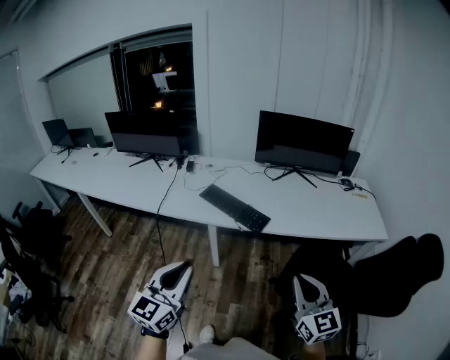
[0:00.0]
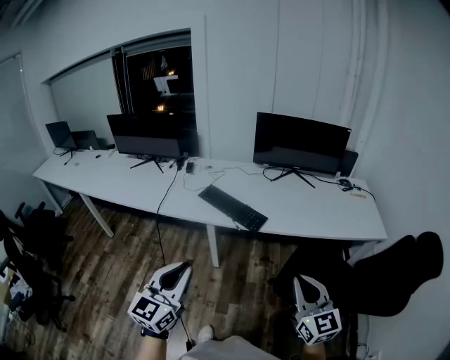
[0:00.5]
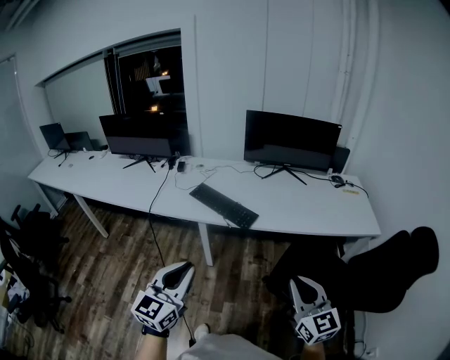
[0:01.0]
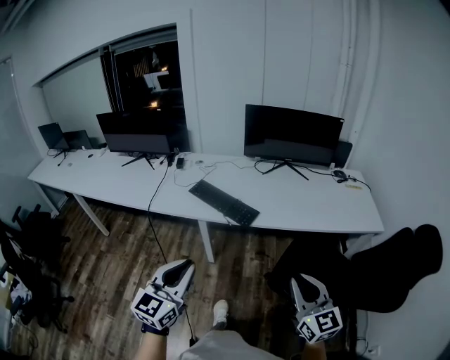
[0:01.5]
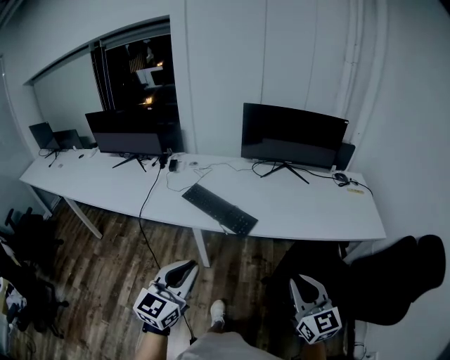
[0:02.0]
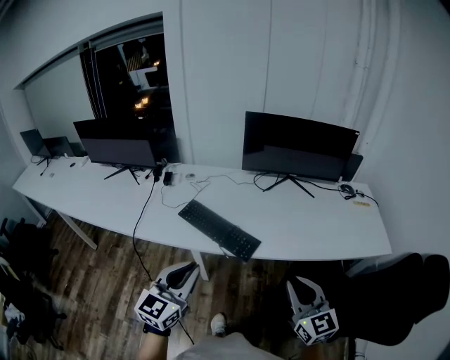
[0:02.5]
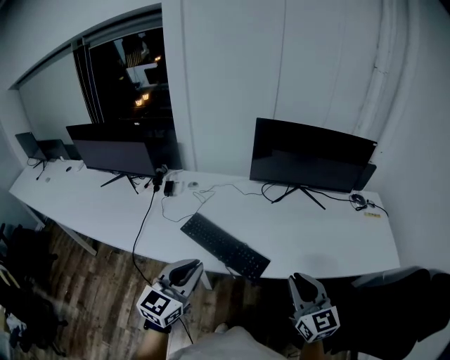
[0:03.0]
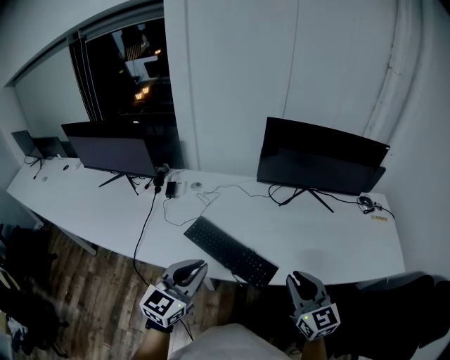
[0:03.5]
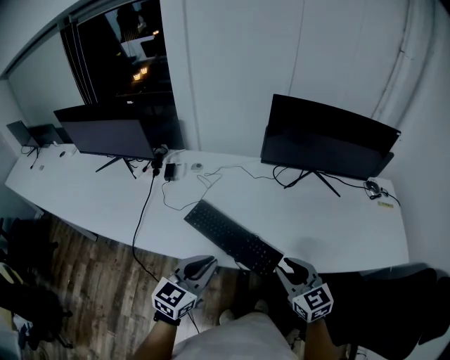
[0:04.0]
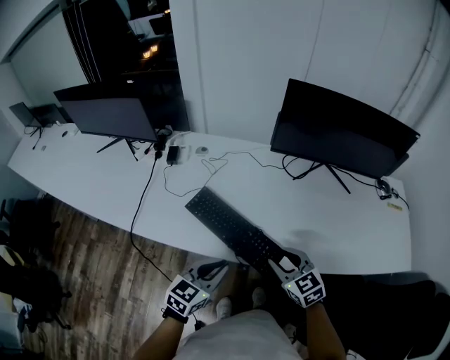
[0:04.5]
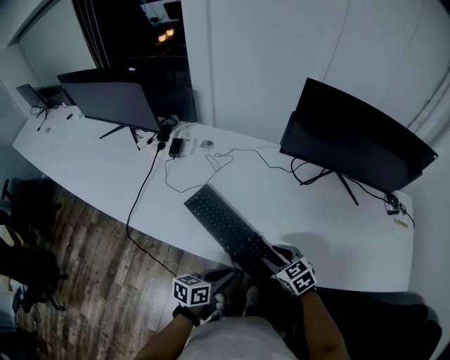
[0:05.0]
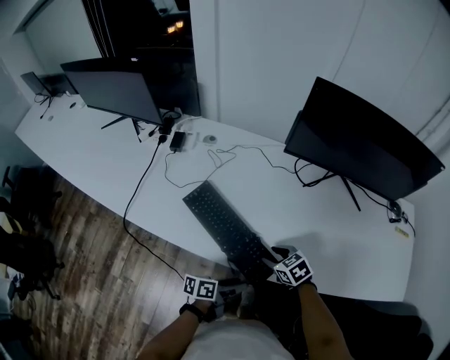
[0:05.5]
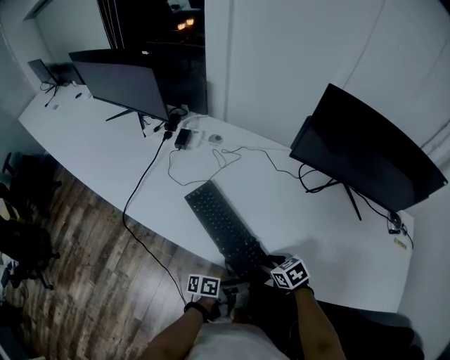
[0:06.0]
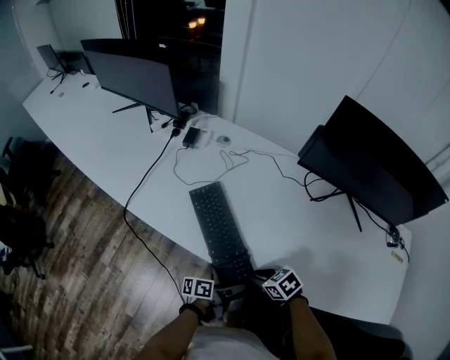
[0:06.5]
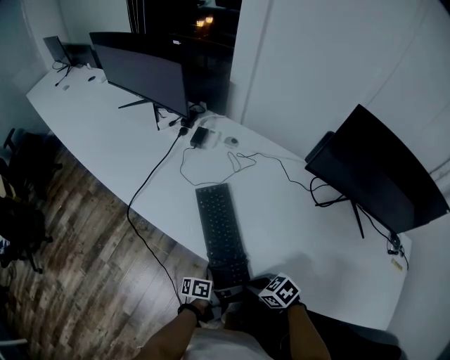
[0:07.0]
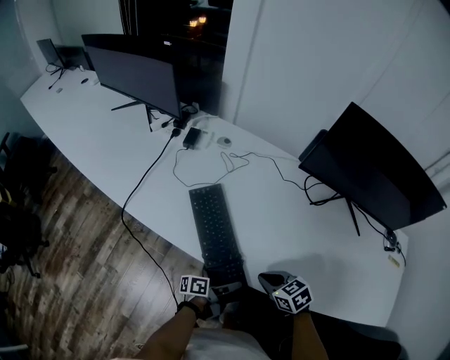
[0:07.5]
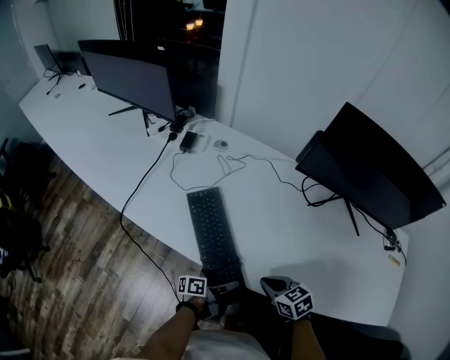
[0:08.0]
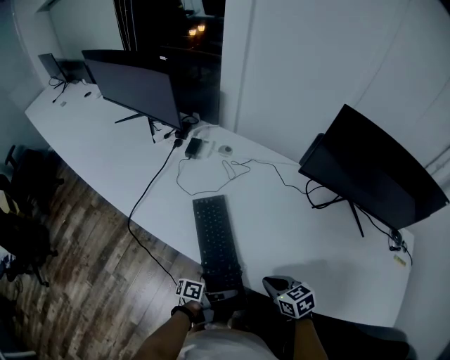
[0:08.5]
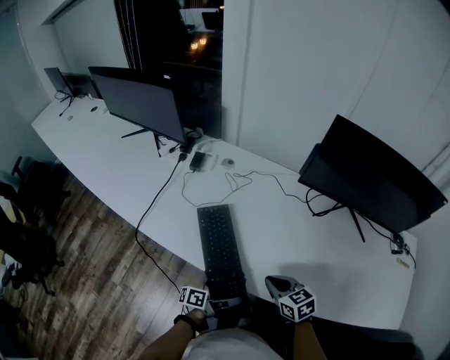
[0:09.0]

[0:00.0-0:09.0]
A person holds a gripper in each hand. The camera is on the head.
0:00.0 to 0:02.0: The grippers both shift forward and to the right by some 10 cm.
0:02.0 to 0:04.5: The left gripper is displaced forward and downward by approximately 35 cm, and swivels approximately 30 degrees; the right gripper heads forward, downward and to the left, covering approximately 40 cm, turns by approximately 30 degrees, and opens its fingers.
0:04.5 to 0:07.0: Both grippers move downward, about 15 cm. The right gripper changes its angle by some 50 degrees, and closes its fingers, while the left gripper twists roughly 80 degrees counterclockwise, seen from behind, and opens.
0:07.0 to 0:09.0: Both grippers move upward, approximately 5 cm. The right gripper turns by about 30 degrees; the left gripper closes.

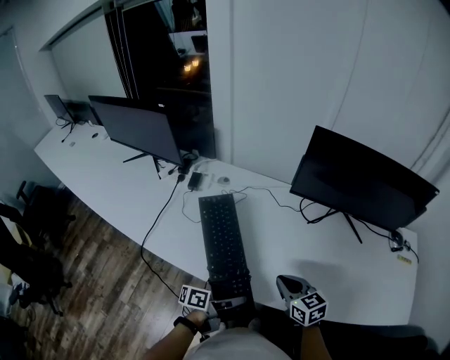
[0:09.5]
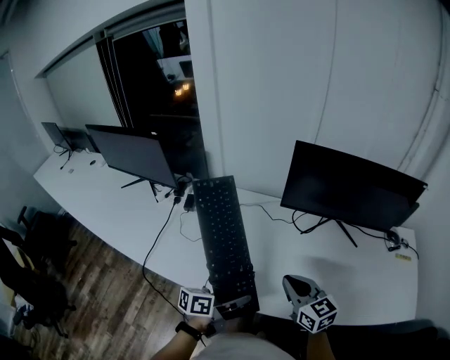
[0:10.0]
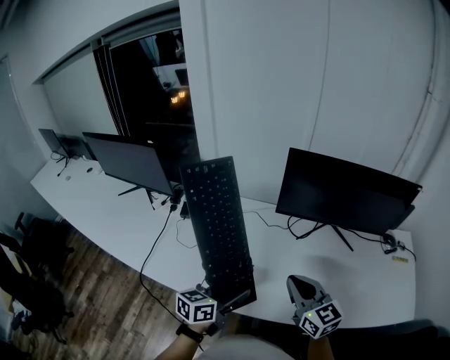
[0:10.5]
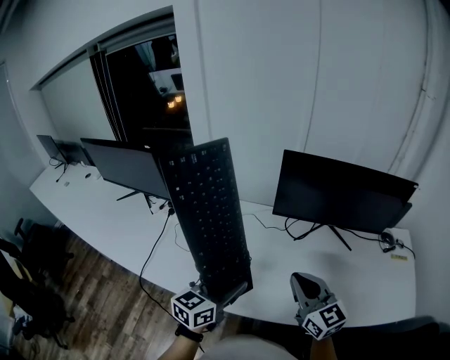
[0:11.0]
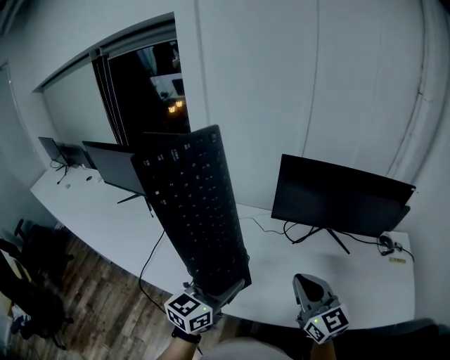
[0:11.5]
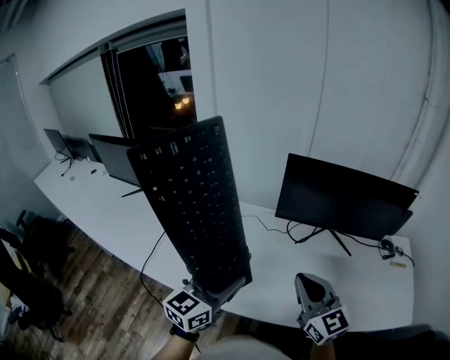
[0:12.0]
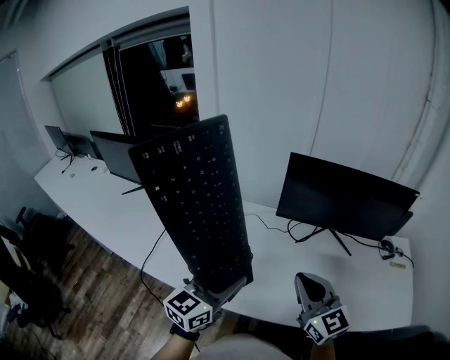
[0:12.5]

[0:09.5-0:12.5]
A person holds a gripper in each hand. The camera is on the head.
0:09.5 to 0:11.0: The right gripper goes roughly 20 cm upward, and swivels approximately 30 degrees. Meanwhile the left gripper heads upward and forward, covering some 20 cm, and twists approximately 60 degrees clockwise, seen from behind.
0:11.0 to 0:12.5: The left gripper heads upward, covering about 5 cm.

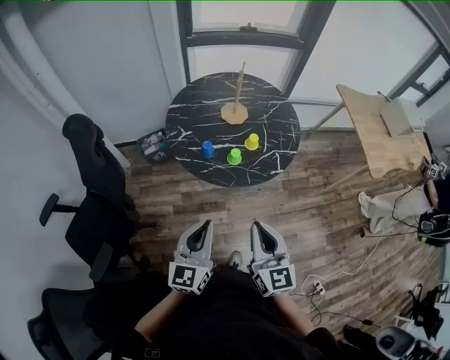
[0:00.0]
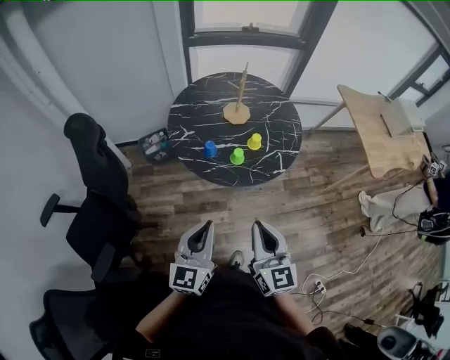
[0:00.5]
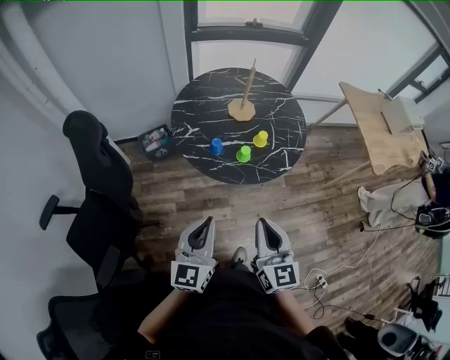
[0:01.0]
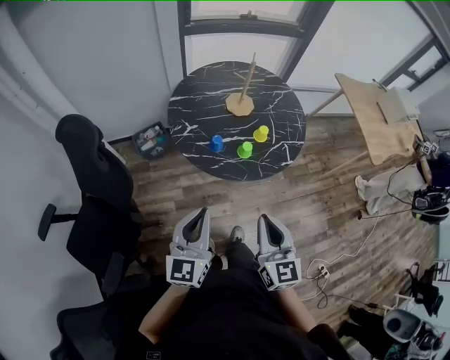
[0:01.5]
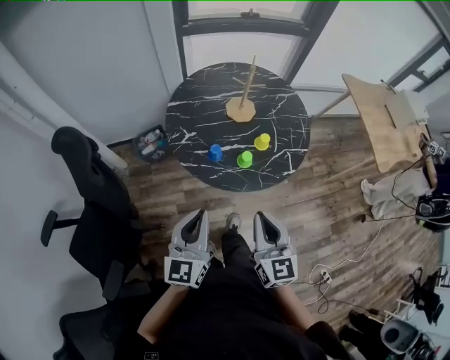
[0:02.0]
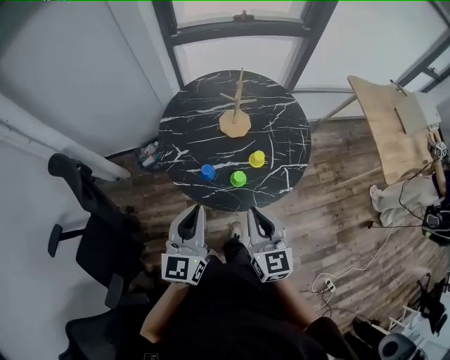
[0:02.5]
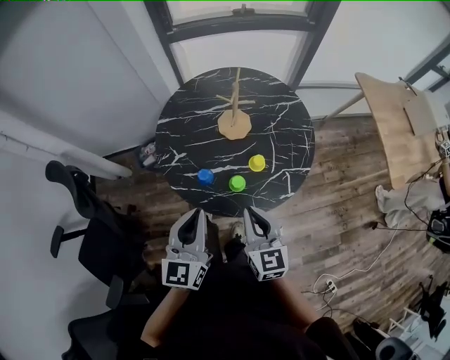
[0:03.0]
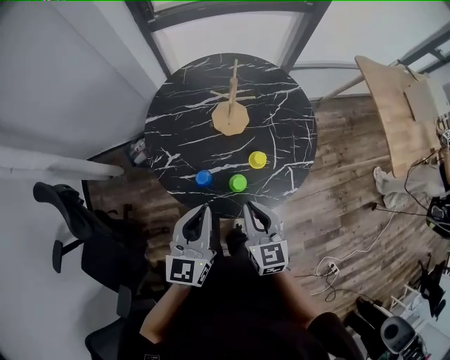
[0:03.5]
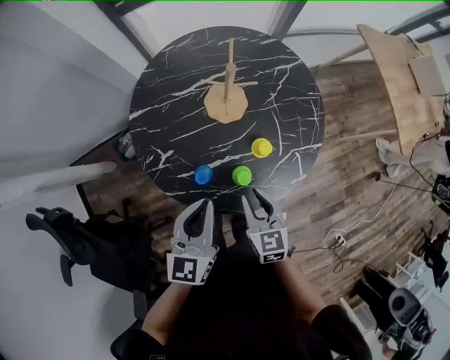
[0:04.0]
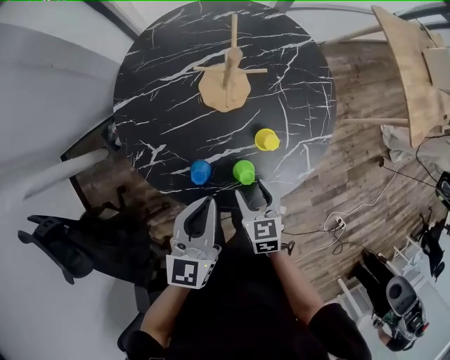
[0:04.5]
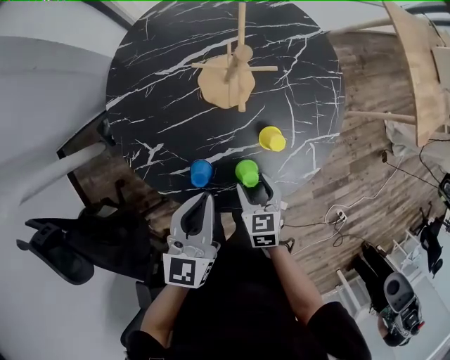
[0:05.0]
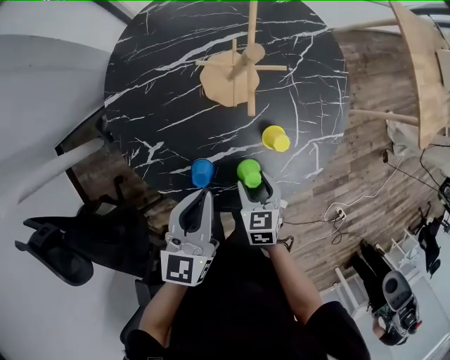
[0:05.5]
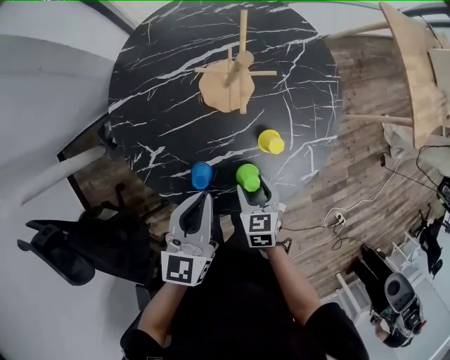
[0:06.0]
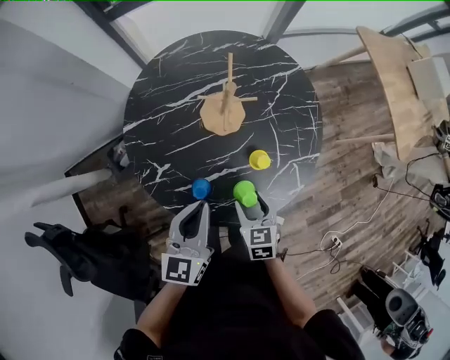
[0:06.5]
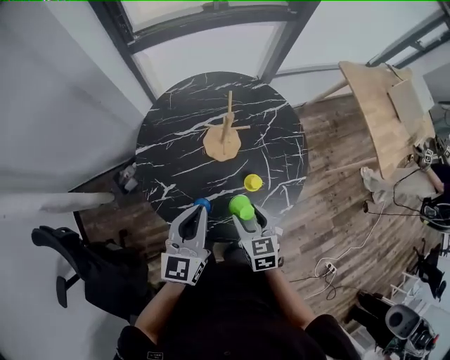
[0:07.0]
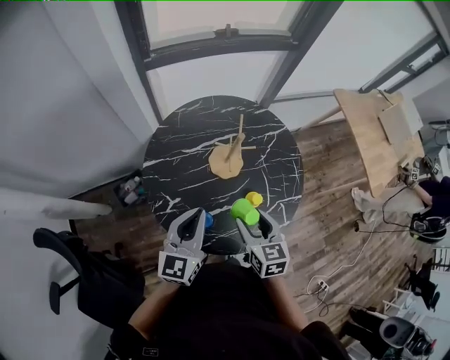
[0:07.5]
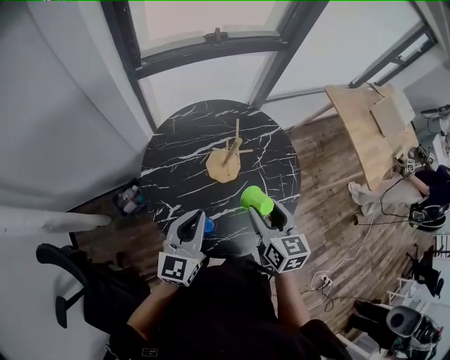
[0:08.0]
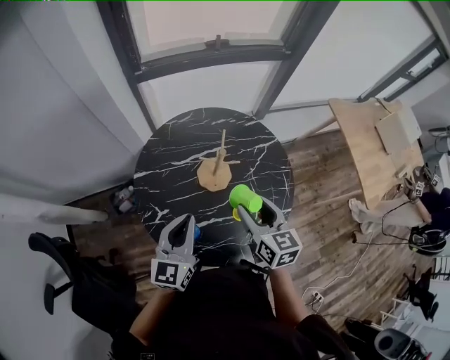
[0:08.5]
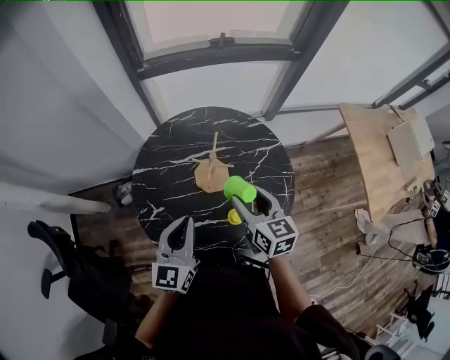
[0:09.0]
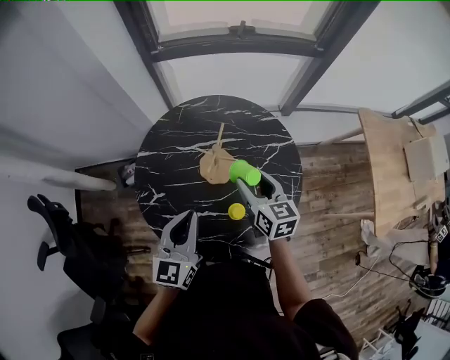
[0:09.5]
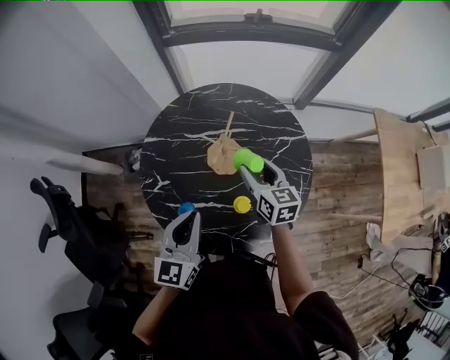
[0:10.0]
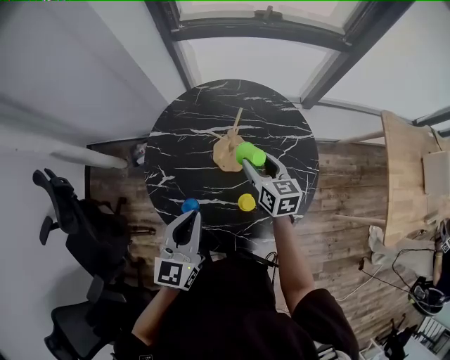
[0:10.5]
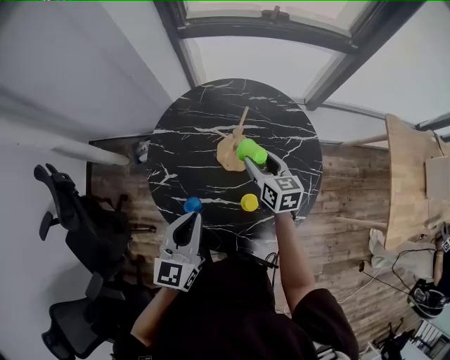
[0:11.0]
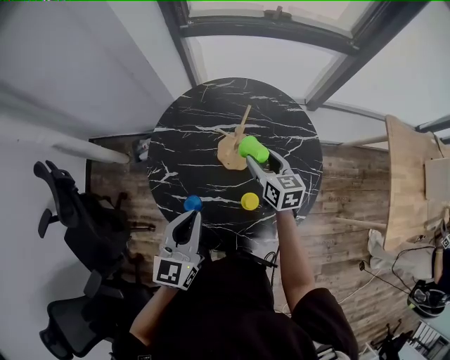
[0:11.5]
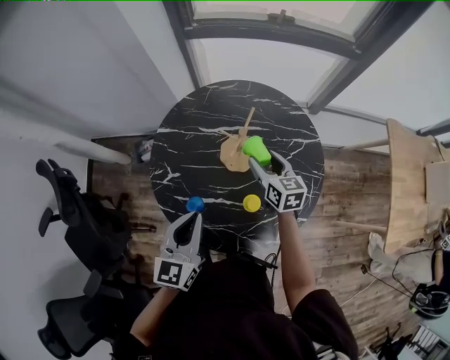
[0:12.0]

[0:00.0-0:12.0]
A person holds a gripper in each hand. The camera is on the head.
0:00.0 to 0:02.0: Both grippers move forward and to the left, roughly 15 cm.
0:02.0 to 0:04.0: The right gripper goes some 30 cm forward and downward, turns by some 20 degrees, and opens. The left gripper heads forward, covering about 25 cm.
0:04.0 to 0:06.0: The right gripper goes about 15 cm downward, rotates about 20 degrees, and opens its fingers. The left gripper travels downward and forward by approximately 10 cm.
0:06.0 to 0:08.0: The right gripper shifts approximately 30 cm upward, and tilts its fingers about 30 degrees upward. Meanwhile the left gripper heads upward, covering approximately 15 cm.
0:08.0 to 0:10.0: The left gripper ends up approximately 10 cm from where it was, and rotates some 30 degrees; the right gripper changes place by about 20 cm, and changes its angle by roughly 30 degrees.
0:10.0 to 0:12.0: The grippers move only a little.

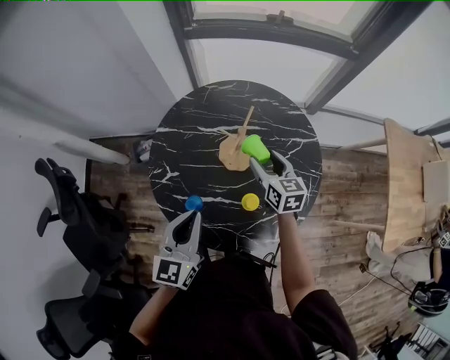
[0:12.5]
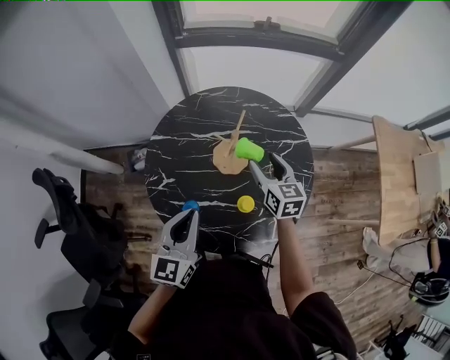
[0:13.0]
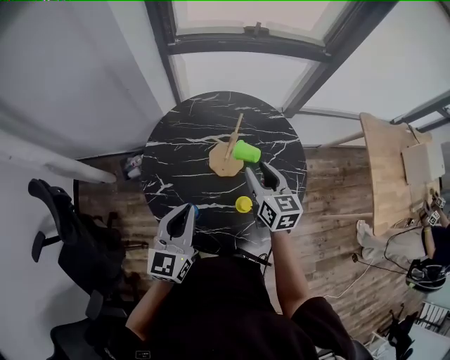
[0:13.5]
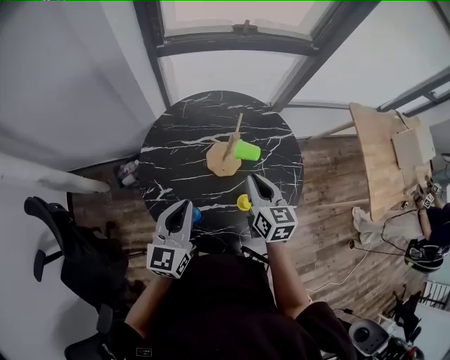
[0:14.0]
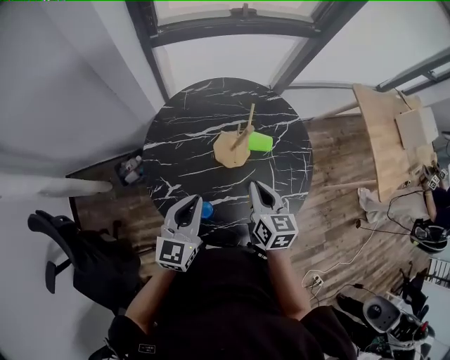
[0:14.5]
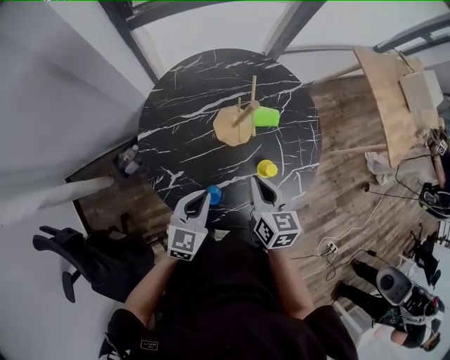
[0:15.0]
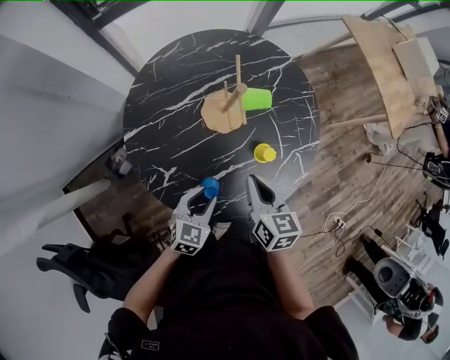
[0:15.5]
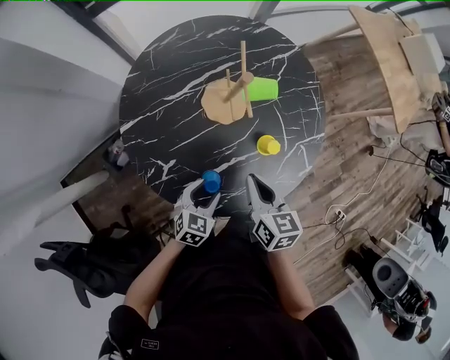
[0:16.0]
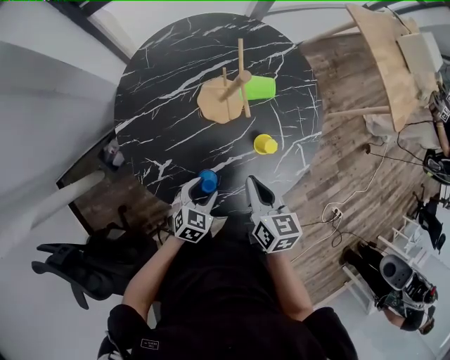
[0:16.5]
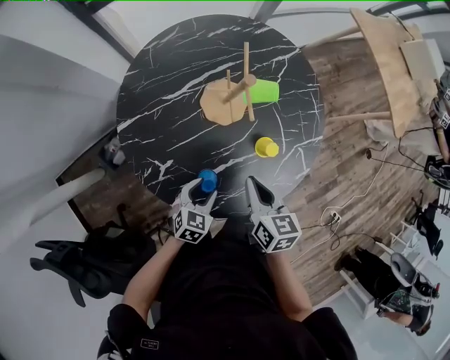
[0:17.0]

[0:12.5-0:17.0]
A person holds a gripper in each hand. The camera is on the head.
0:12.5 to 0:14.5: The left gripper heads to the left and forward, covering approximately 10 cm, and changes its angle by roughly 20 degrees. The right gripper heads backward and to the left, covering some 15 cm, turns by roughly 20 degrees, and closes.
0:14.5 to 0:17.0: The right gripper heads downward and backward, covering roughly 10 cm; the left gripper heads downward, covering some 25 cm, angles its fingers downward, by some 30 degrees, and opens.
